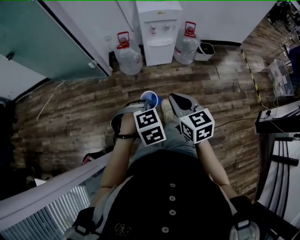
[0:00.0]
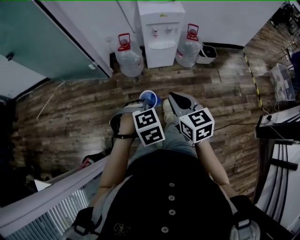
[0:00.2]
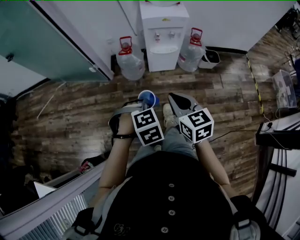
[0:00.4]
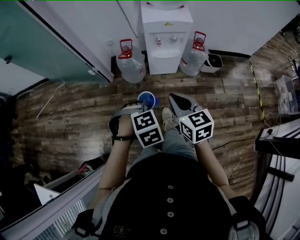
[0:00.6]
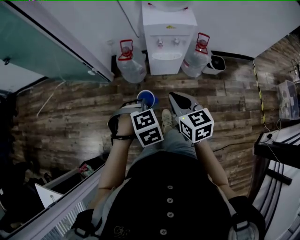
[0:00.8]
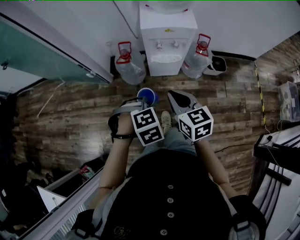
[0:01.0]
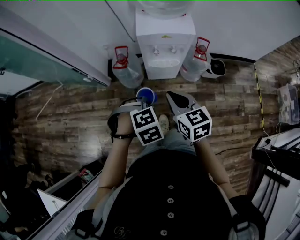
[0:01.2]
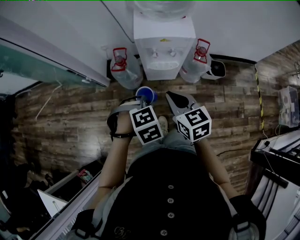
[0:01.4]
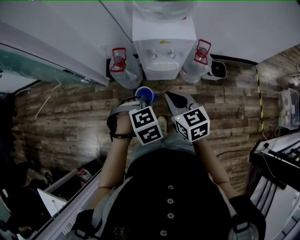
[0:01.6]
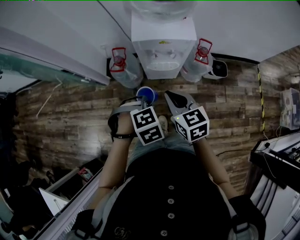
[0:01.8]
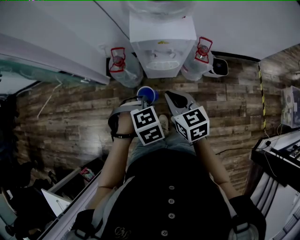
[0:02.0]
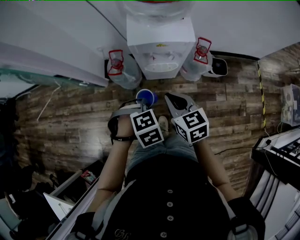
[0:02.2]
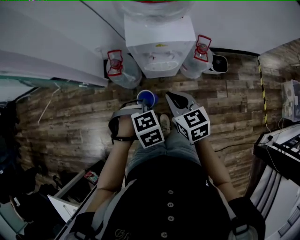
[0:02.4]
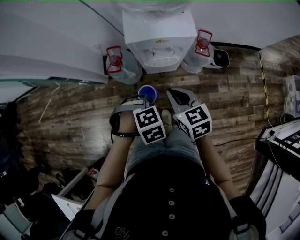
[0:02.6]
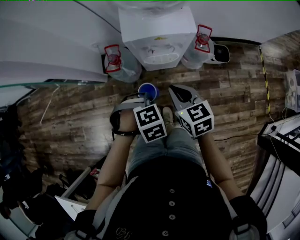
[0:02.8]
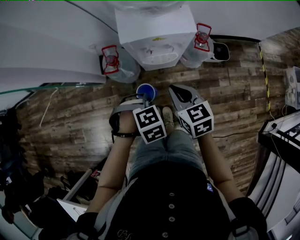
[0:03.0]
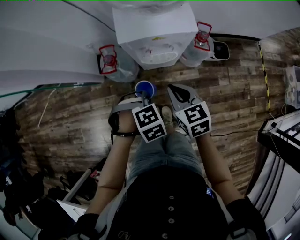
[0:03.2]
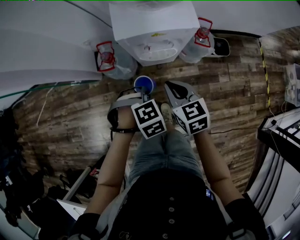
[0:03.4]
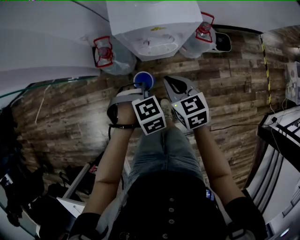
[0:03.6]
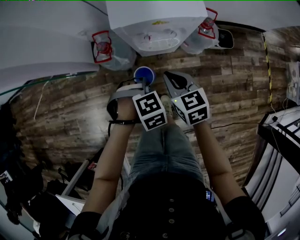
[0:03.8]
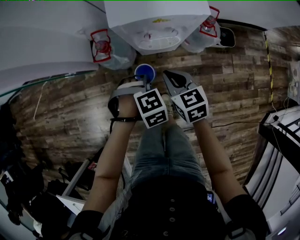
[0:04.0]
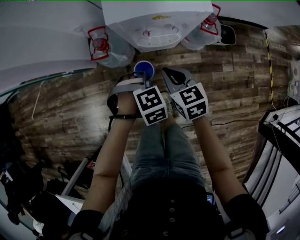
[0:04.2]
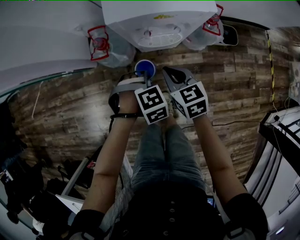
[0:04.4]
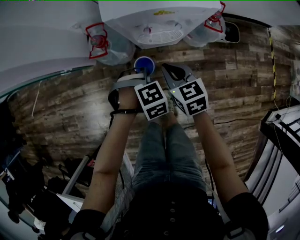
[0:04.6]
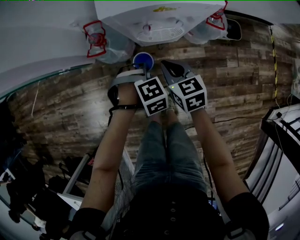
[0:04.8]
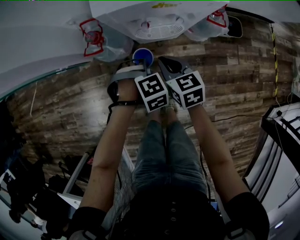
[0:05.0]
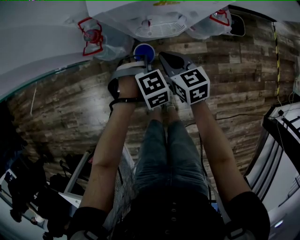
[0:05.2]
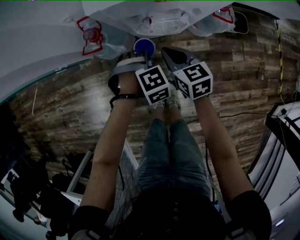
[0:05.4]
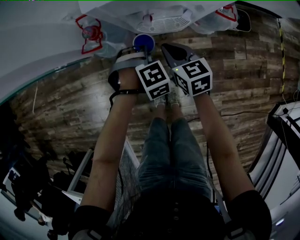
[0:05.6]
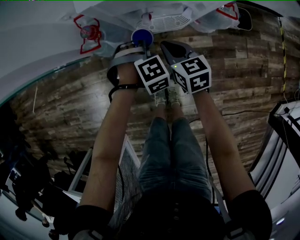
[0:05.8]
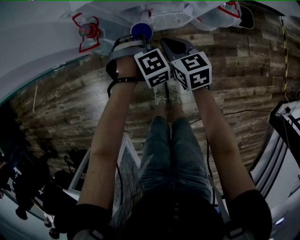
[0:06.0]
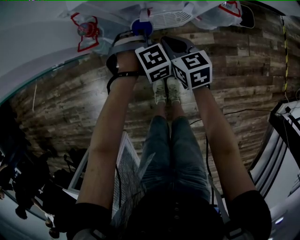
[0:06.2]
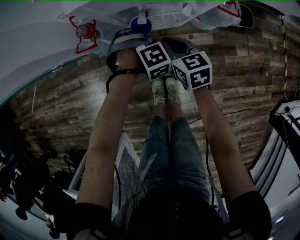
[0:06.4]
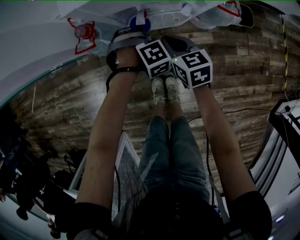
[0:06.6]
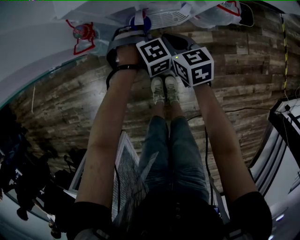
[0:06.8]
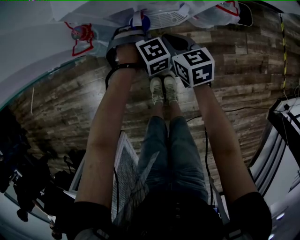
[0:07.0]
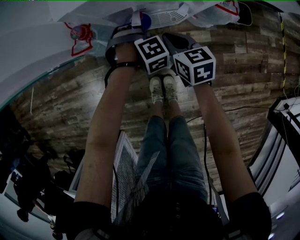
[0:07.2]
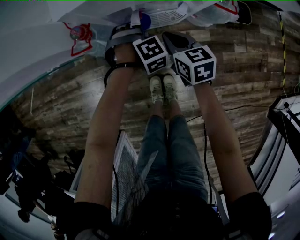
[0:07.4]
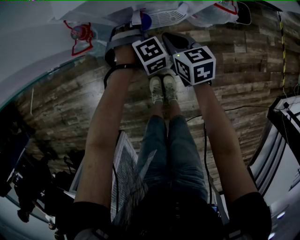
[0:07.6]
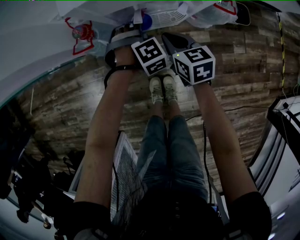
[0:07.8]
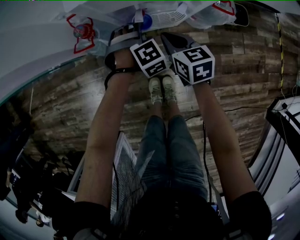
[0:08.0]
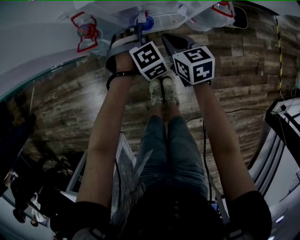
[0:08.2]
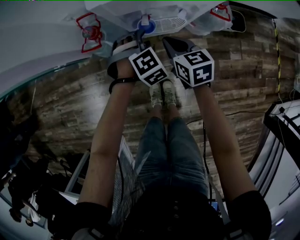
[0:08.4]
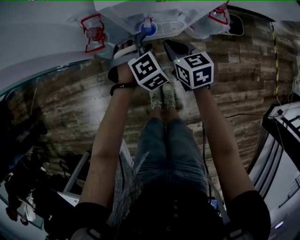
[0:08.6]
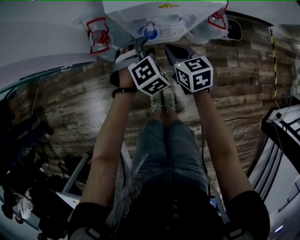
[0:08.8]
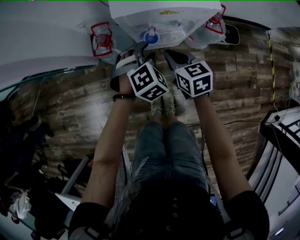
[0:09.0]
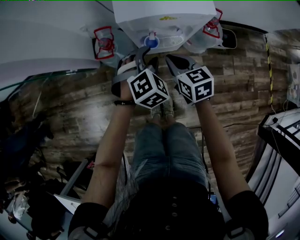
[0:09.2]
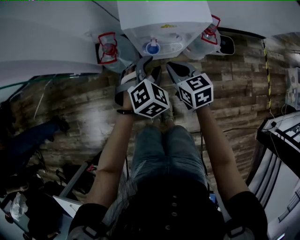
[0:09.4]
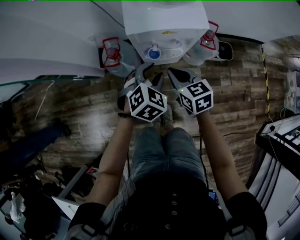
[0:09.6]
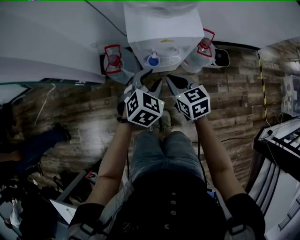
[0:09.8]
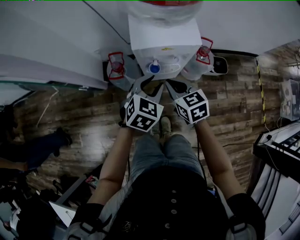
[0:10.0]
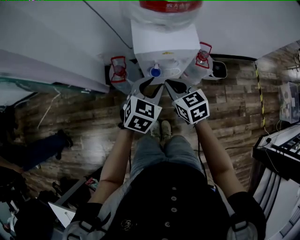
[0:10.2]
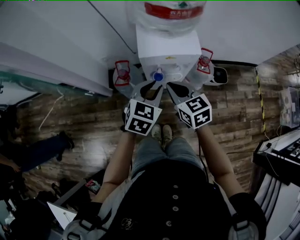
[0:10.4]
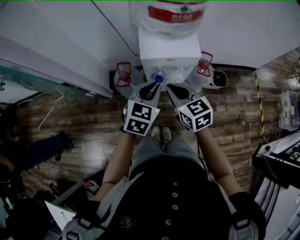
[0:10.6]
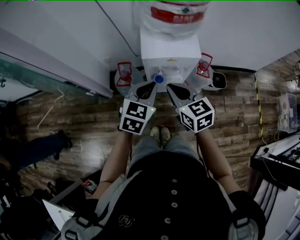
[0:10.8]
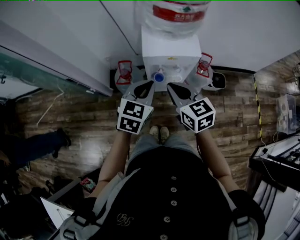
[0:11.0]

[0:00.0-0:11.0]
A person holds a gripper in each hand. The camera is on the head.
0:00.0 to 0:01.6: The two grippers go some 35 cm forward.
0:01.6 to 0:03.2: Both grippers travel together downward, about 5 cm.
0:03.2 to 0:04.8: The grippers both shift downward by some 15 cm.
0:04.8 to 0:06.2: The right gripper moves downward, about 10 cm; the left gripper moves roughly 15 cm.
0:06.2 to 0:07.8: The left gripper opens up.
0:07.8 to 0:09.4: The two grippers go approximately 20 cm upward. The left gripper swivels some 40 degrees.
0:09.4 to 0:11.0: Both grippers move upward, approximately 20 cm. The left gripper swivels some 40 degrees, and closes.

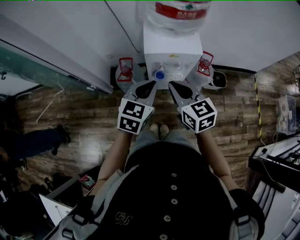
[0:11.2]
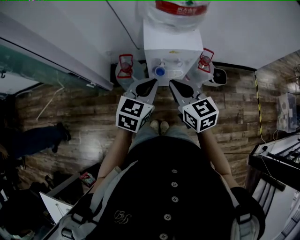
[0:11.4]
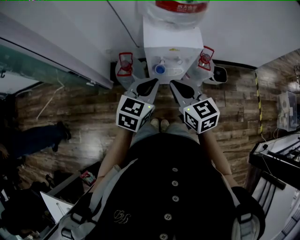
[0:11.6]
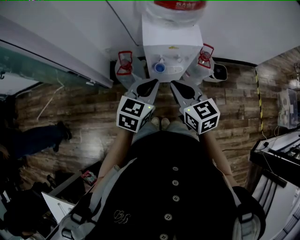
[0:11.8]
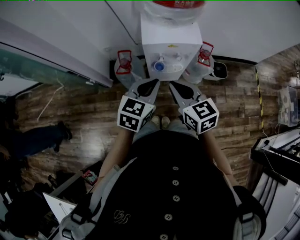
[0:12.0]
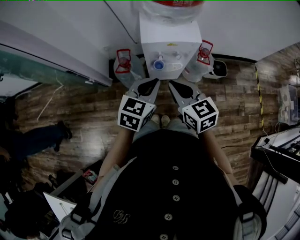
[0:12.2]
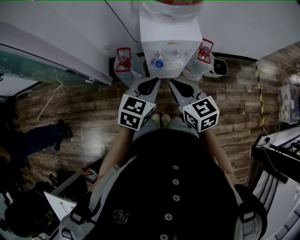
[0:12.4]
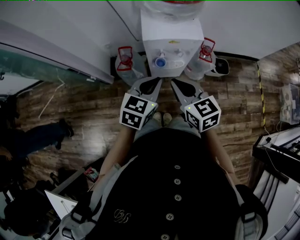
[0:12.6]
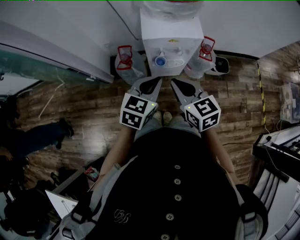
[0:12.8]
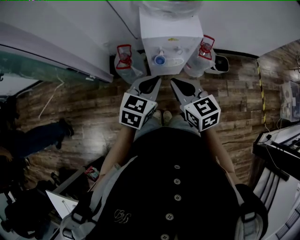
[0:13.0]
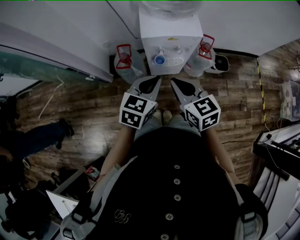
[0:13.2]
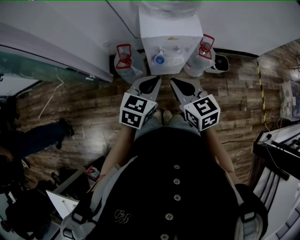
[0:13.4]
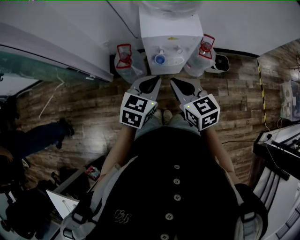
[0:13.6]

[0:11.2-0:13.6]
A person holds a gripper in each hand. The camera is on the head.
0:11.2 to 0:12.4: The grippers stay close to where they were, moving slightly.
0:12.4 to 0:13.6: The two grippers keep their place.

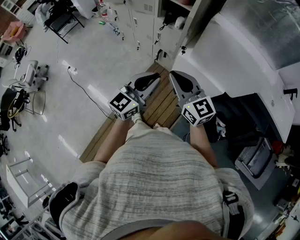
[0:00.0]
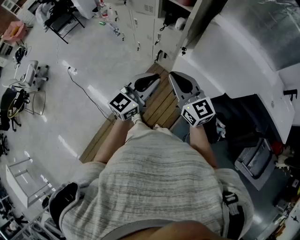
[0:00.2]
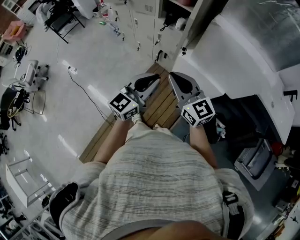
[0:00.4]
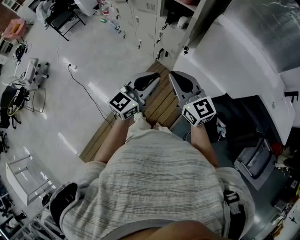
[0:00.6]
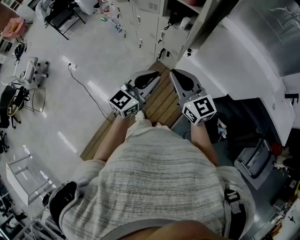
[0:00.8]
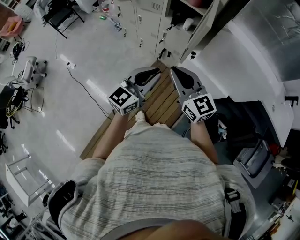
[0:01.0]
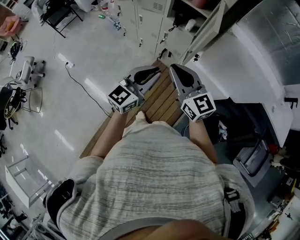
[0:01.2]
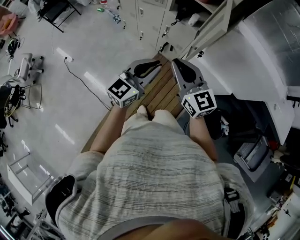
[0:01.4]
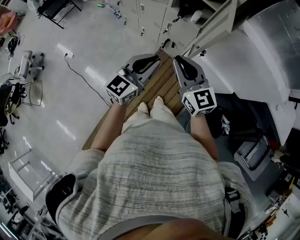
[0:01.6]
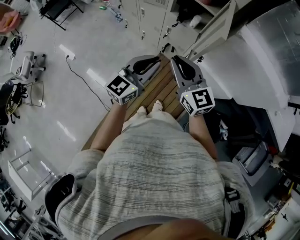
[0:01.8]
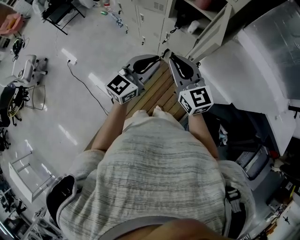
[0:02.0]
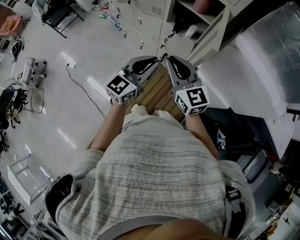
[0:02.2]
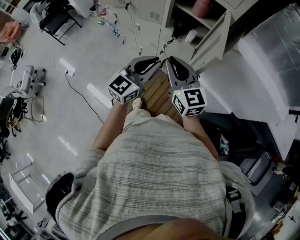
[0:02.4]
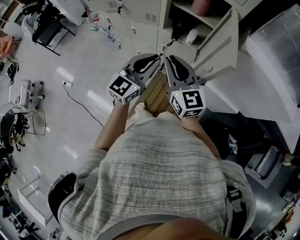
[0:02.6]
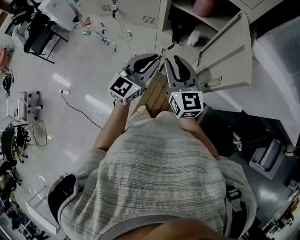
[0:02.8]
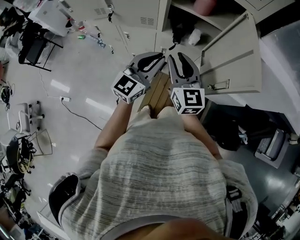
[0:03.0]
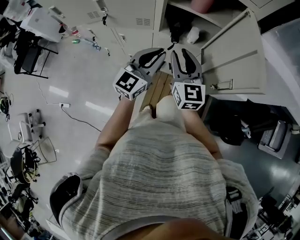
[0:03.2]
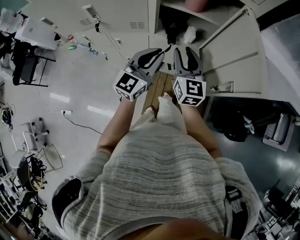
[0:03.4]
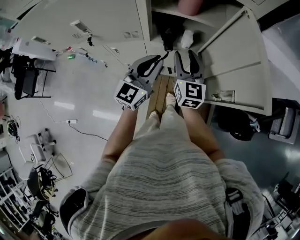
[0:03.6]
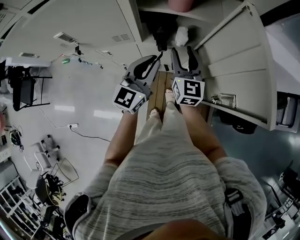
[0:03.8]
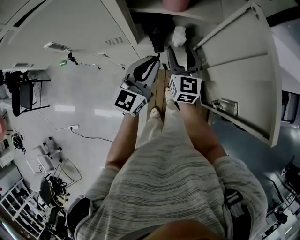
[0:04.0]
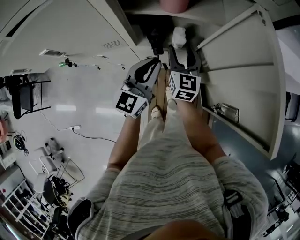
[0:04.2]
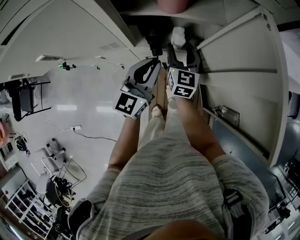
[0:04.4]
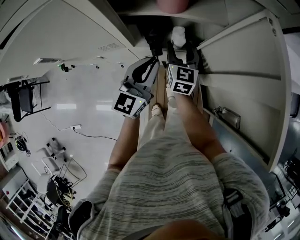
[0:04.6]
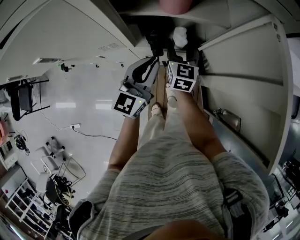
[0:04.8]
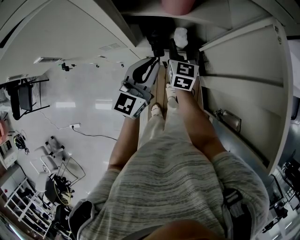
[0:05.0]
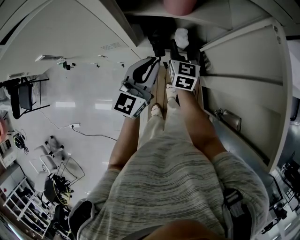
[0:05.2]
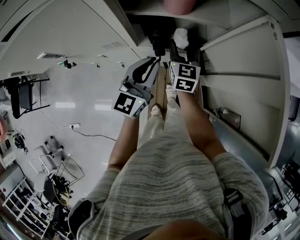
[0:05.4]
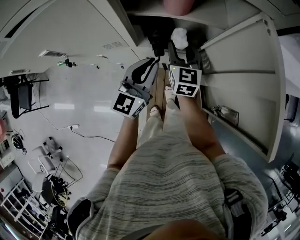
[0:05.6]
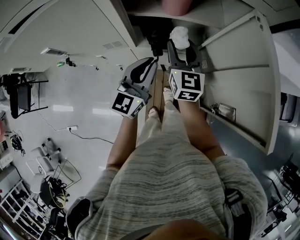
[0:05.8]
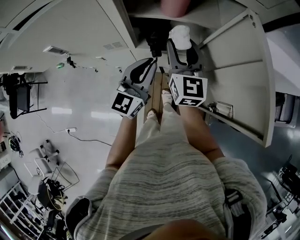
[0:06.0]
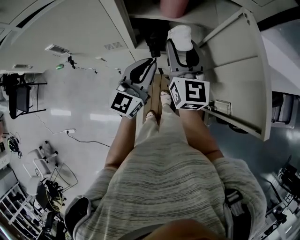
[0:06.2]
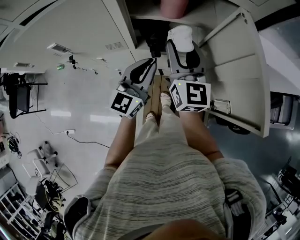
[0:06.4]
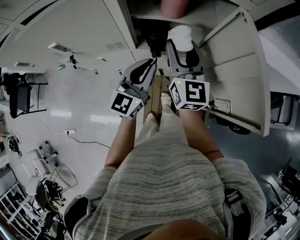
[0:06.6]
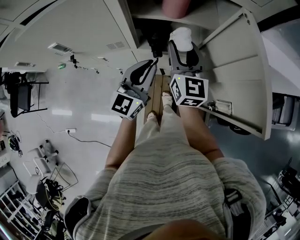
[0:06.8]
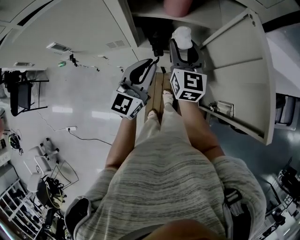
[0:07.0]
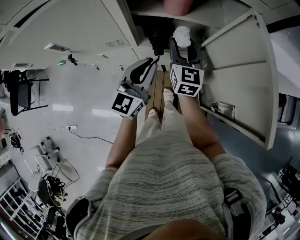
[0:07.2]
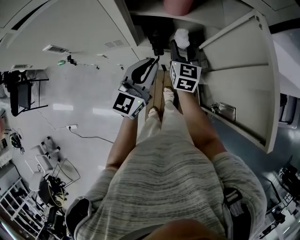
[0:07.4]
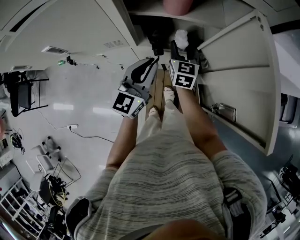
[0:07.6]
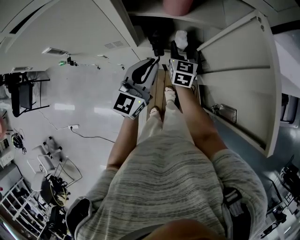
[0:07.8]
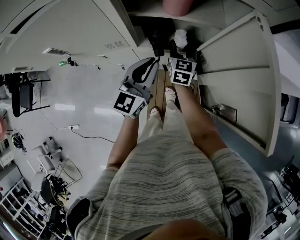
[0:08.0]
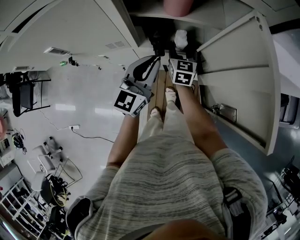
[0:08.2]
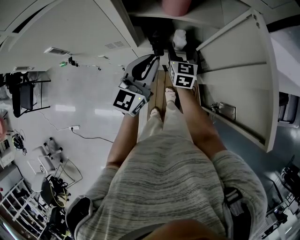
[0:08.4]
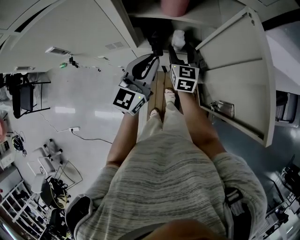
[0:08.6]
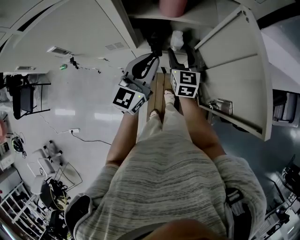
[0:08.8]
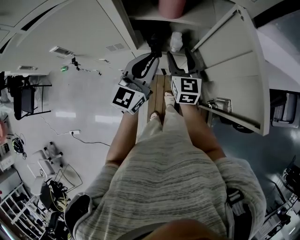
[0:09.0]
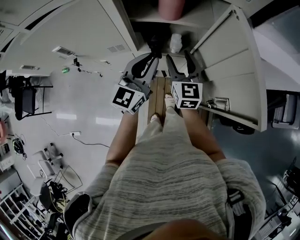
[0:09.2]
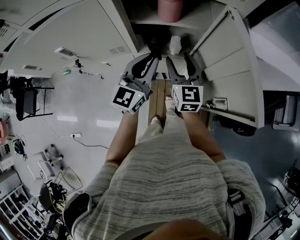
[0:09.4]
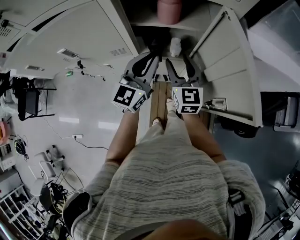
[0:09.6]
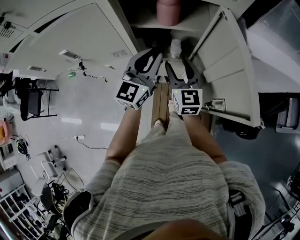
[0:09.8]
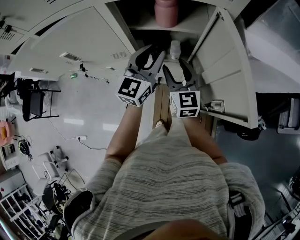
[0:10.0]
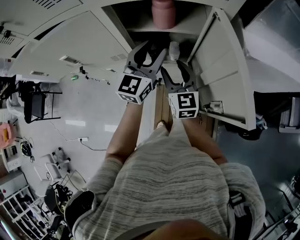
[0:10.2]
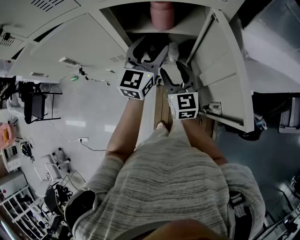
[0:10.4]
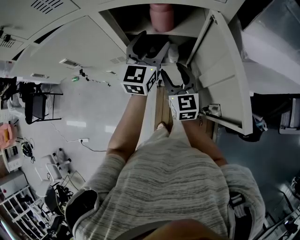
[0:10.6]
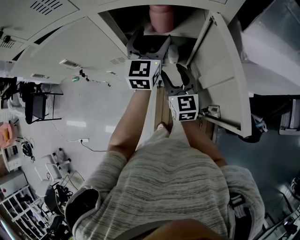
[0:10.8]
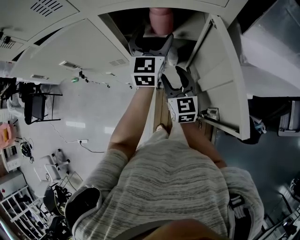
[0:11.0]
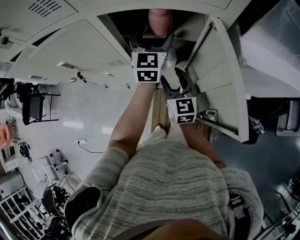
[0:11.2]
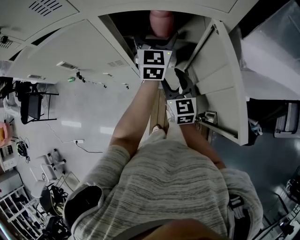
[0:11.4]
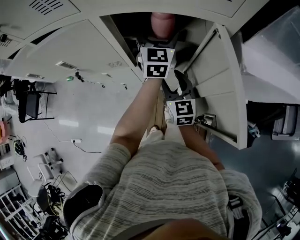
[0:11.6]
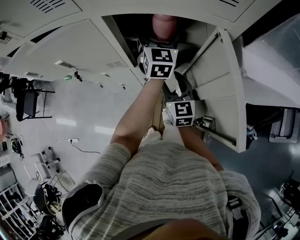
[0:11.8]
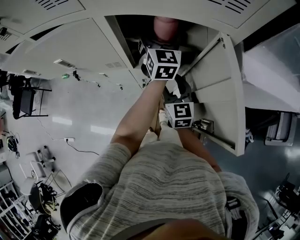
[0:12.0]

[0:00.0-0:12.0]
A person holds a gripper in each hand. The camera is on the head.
0:00.0 to 0:01.6: Both grippers move forward and to the left, approximately 15 cm.
0:01.6 to 0:03.0: Both grippers move forward, approximately 25 cm. The right gripper swivels roughly 30 degrees.
0:03.0 to 0:04.4: The left gripper heads forward and downward, covering some 15 cm; the right gripper shifts approximately 25 cm forward and downward, swivels some 30 degrees, and opens up.
0:04.4 to 0:06.0: The right gripper moves upward, about 15 cm.
0:06.0 to 0:07.6: The right gripper heads downward, covering some 15 cm.
0:07.6 to 0:09.0: The right gripper shifts approximately 10 cm upward and backward.
0:09.0 to 0:10.4: The right gripper moves roughly 5 cm. Meanwhile the left gripper moves forward and upward, approximately 10 cm, and opens.
0:10.4 to 0:12.0: The left gripper travels forward by about 10 cm, and swivels approximately 30 degrees.
